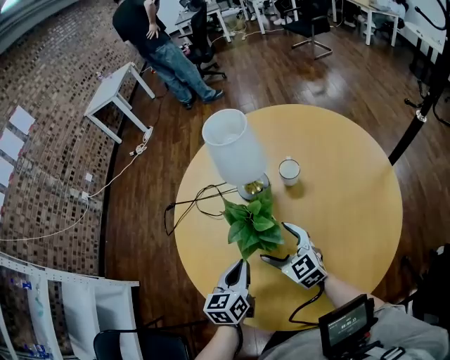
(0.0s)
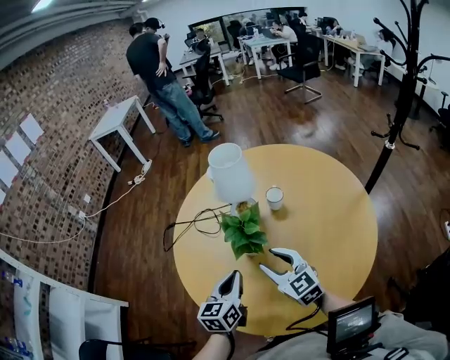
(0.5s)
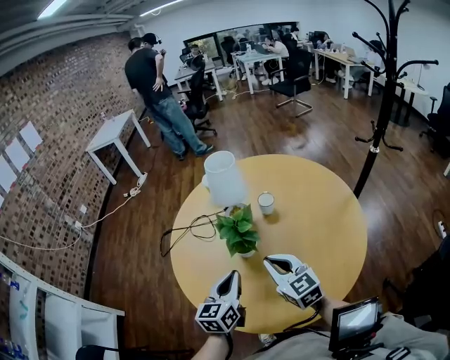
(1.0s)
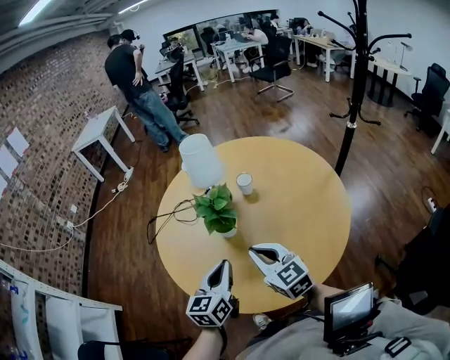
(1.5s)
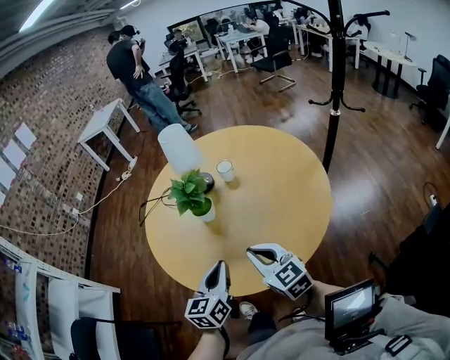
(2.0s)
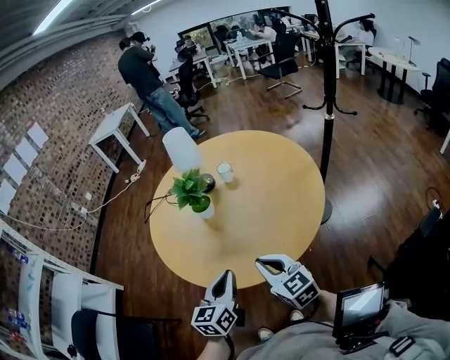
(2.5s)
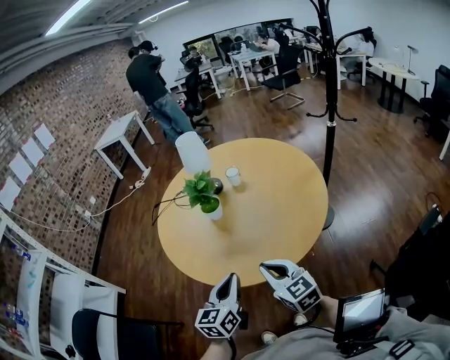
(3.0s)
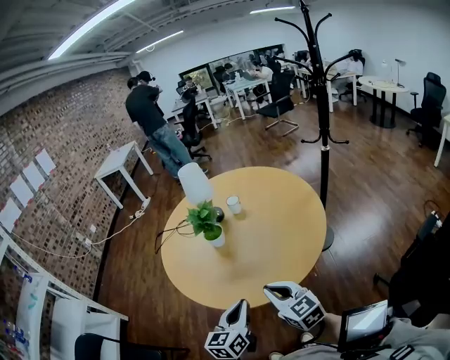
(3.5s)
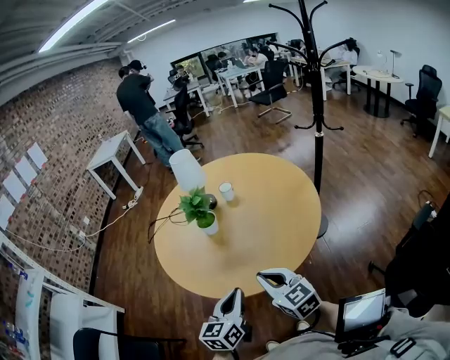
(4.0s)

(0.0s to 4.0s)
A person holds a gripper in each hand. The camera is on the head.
0.0s - 2.0s: The grippers both shift backward and upward by some 25 cm. The right gripper closes.
2.0s - 4.0s: Both grippers travel together backward, about 15 cm.

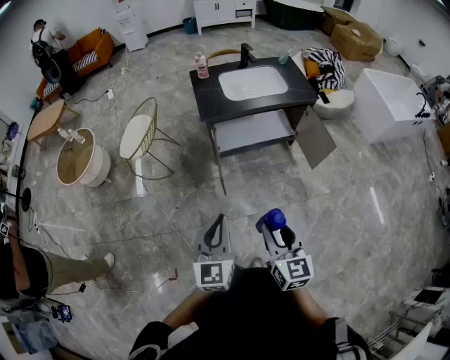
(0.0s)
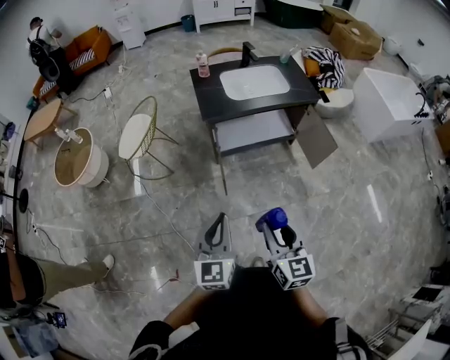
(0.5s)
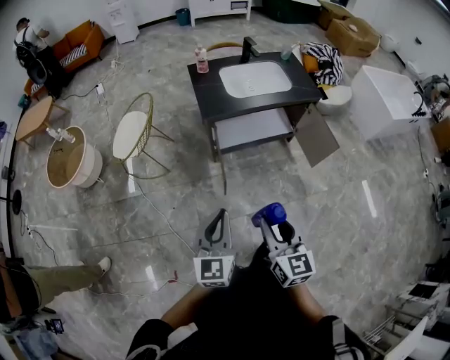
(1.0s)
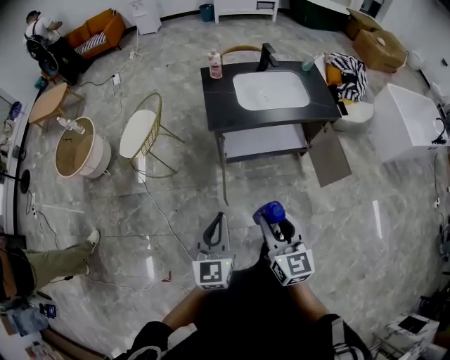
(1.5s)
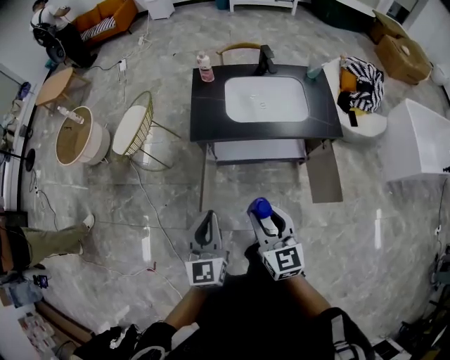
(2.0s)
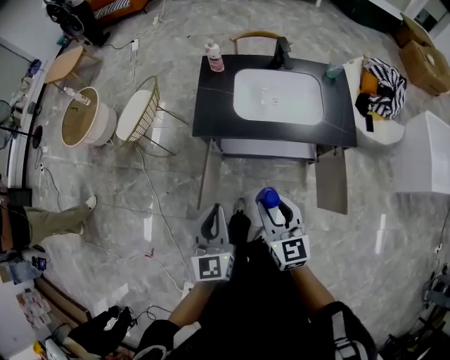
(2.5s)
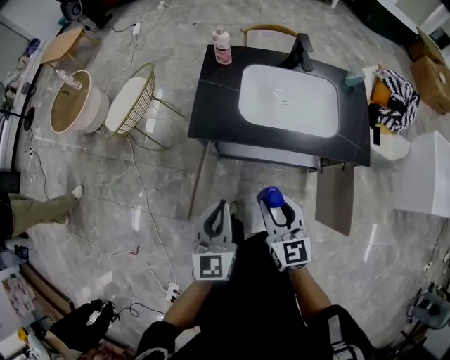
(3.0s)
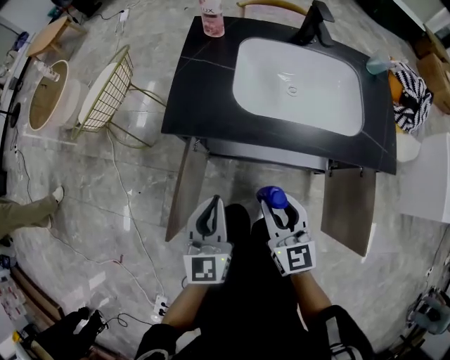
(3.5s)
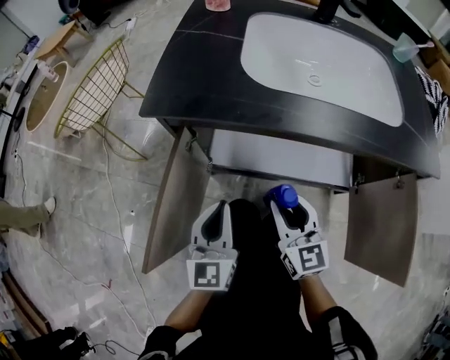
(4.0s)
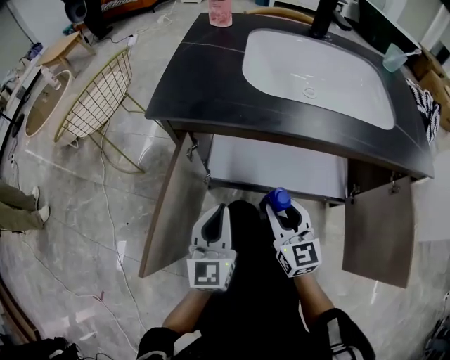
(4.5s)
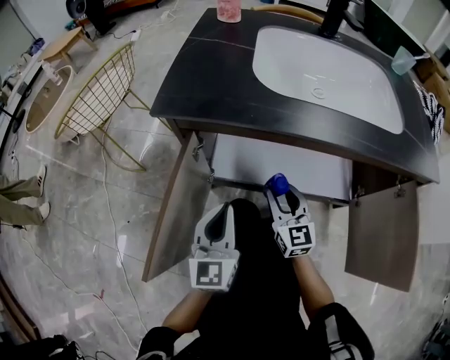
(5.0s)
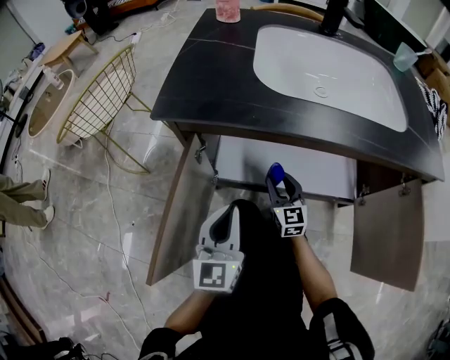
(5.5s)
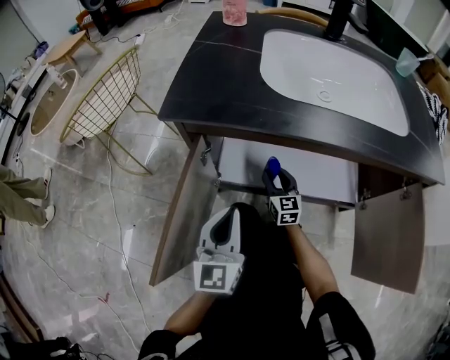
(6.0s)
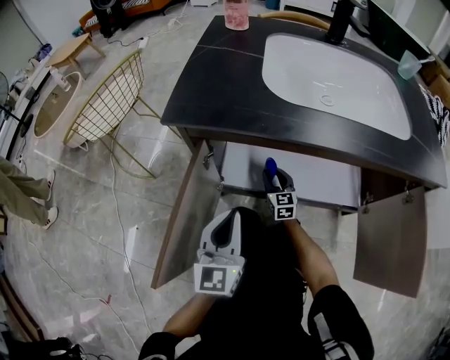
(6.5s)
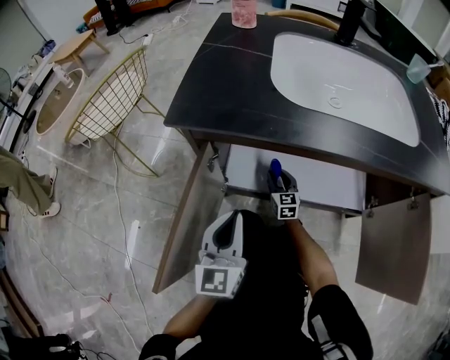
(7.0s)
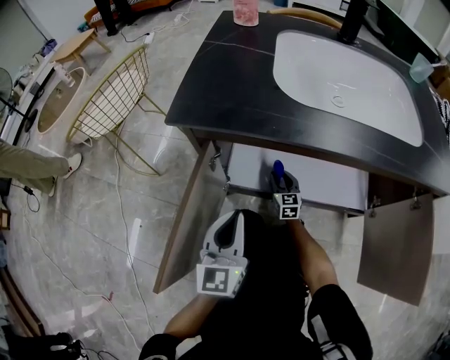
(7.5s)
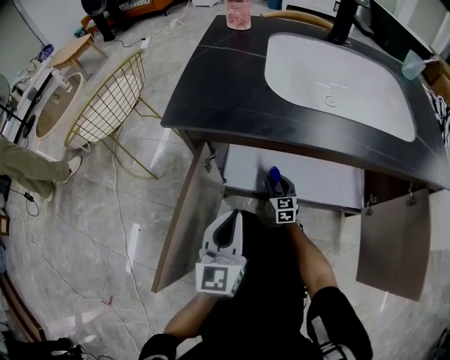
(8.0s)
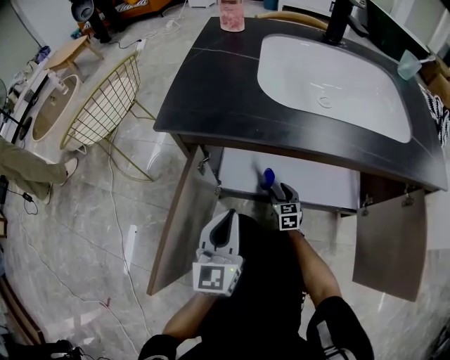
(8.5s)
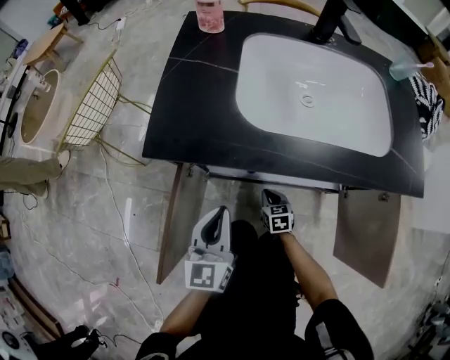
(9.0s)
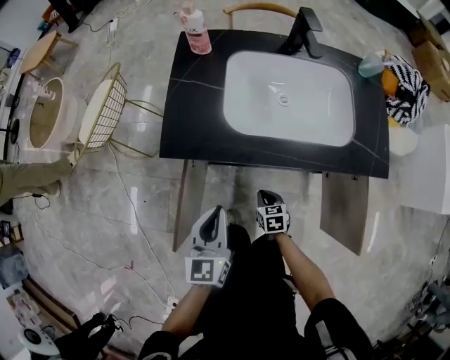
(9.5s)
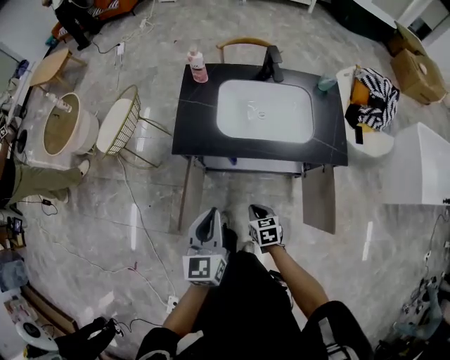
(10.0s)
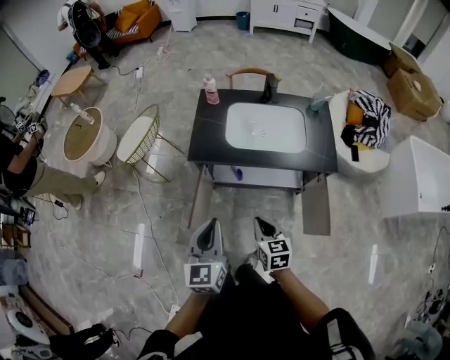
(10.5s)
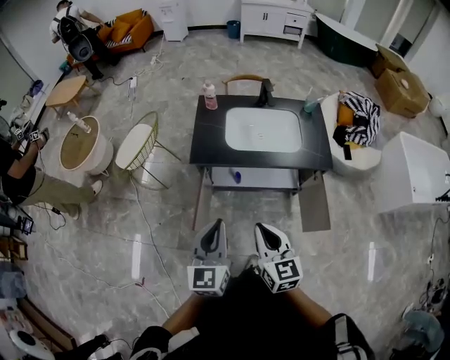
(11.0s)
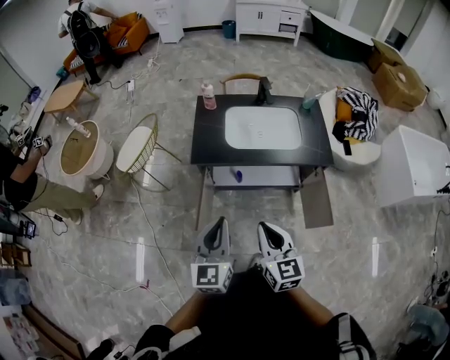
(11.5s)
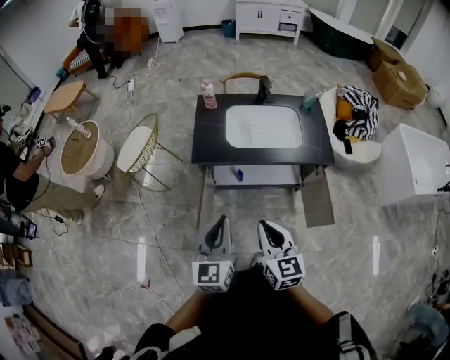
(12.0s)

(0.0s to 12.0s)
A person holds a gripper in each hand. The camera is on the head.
0.0s - 2.0s: The left gripper moves forward and to the right, approximately 30 cm, while the right gripper shifts roughly 35 cm forward, and swivels some 20 degrees.
2.0s - 4.0s: Both grippers travel together downward and forward, about 50 cm.
4.0s - 6.0s: The right gripper shifts approximately 25 cm downward and forward.
6.0s - 8.0s: The right gripper moves downward, about 10 cm.
8.0s - 10.0s: The right gripper is displaced upward and backward by about 50 cm, changes its angle by approximately 30 degrees, and closes, while the left gripper heads upward, covering roughly 40 cm.
10.0s - 12.0s: The left gripper shifts about 20 cm upward and backward. The right gripper heads upward and backward, covering some 35 cm, and points its fingers roughly 30 degrees further upward.

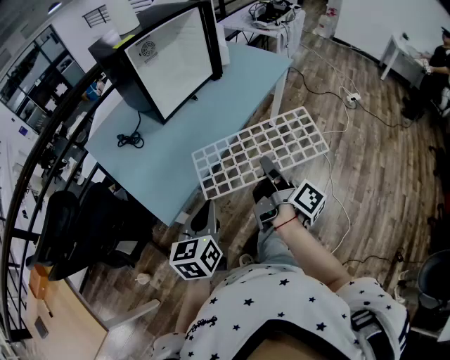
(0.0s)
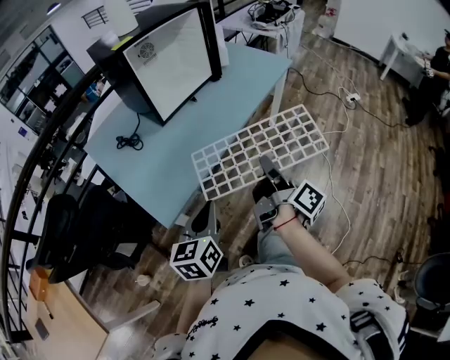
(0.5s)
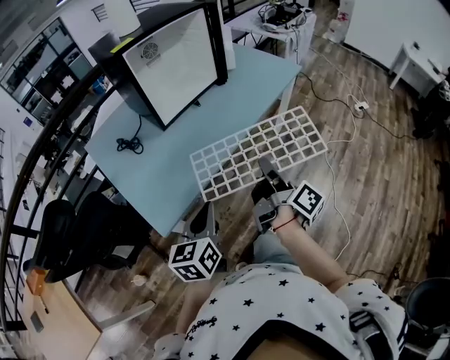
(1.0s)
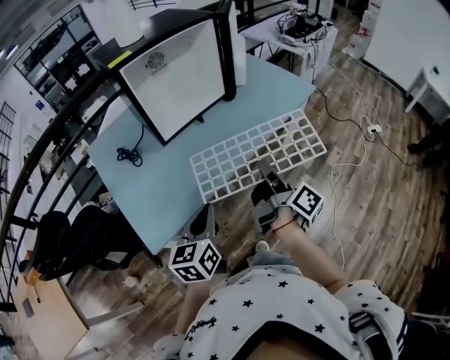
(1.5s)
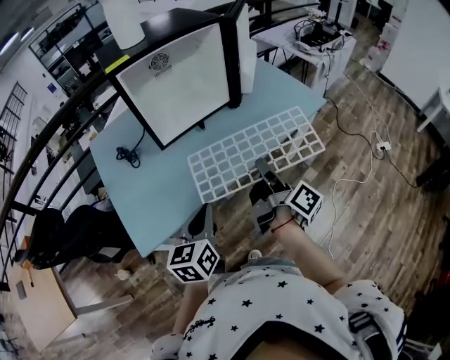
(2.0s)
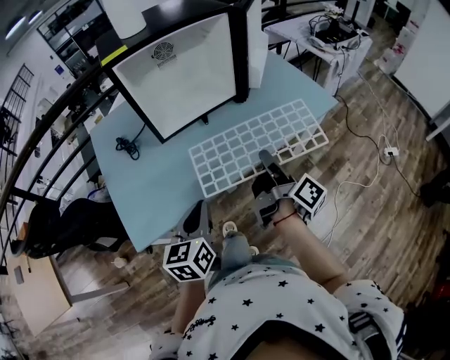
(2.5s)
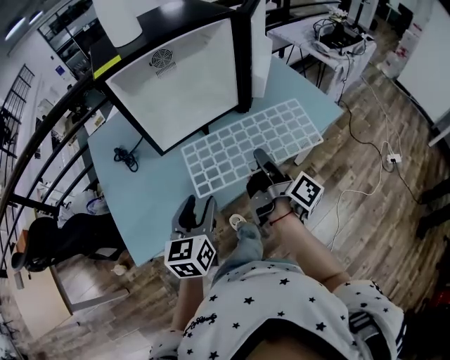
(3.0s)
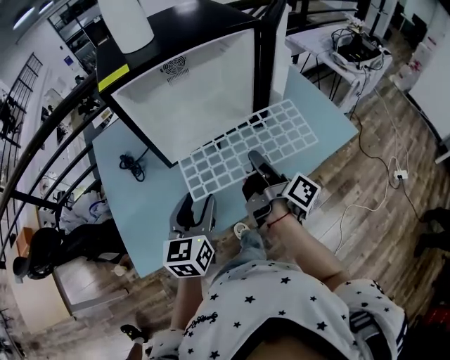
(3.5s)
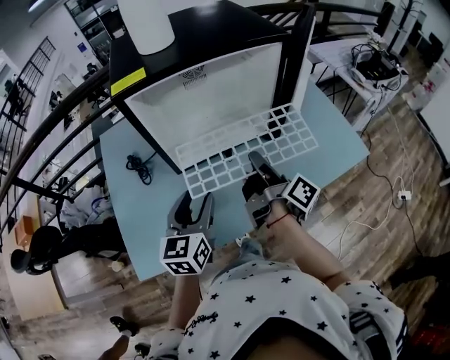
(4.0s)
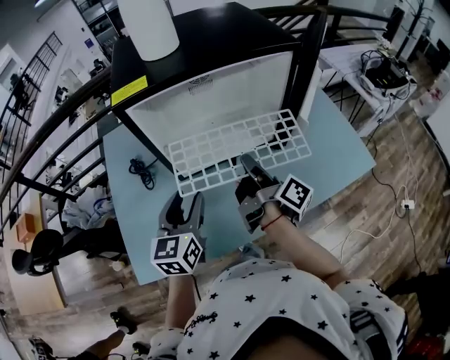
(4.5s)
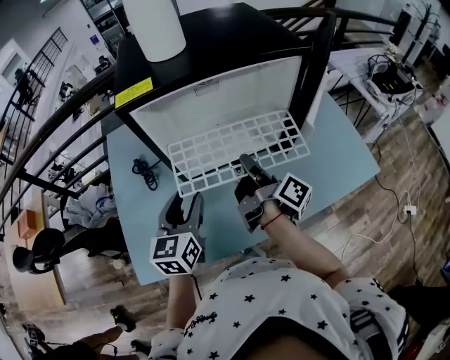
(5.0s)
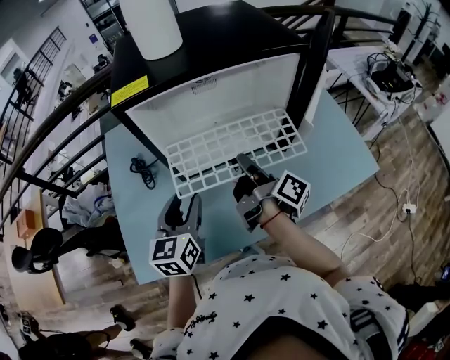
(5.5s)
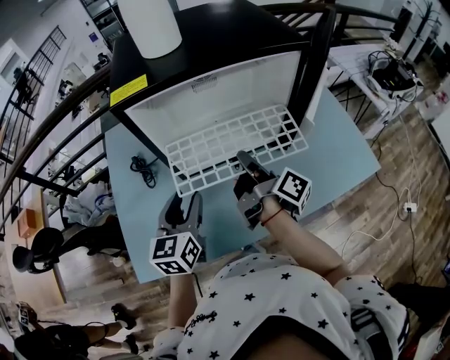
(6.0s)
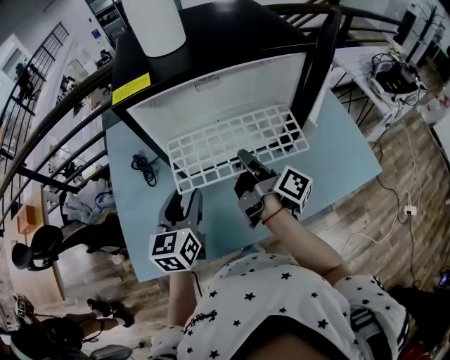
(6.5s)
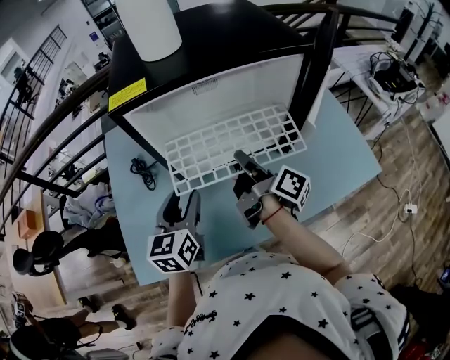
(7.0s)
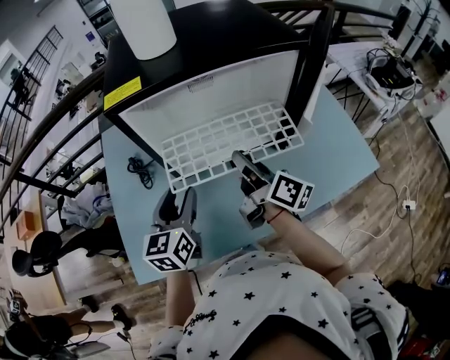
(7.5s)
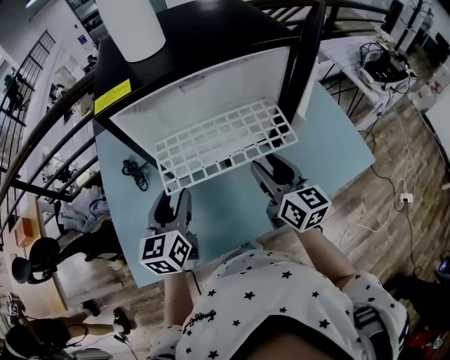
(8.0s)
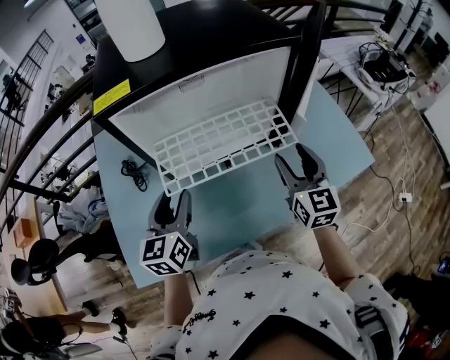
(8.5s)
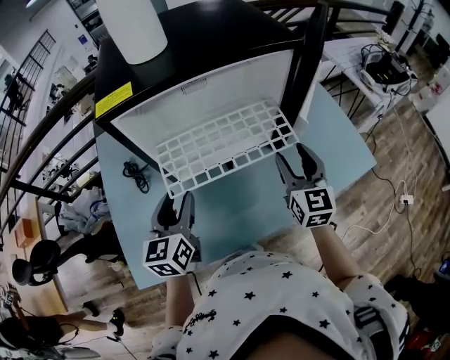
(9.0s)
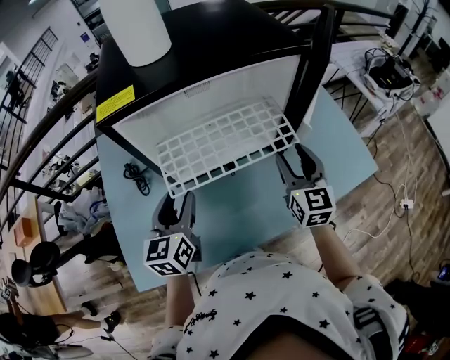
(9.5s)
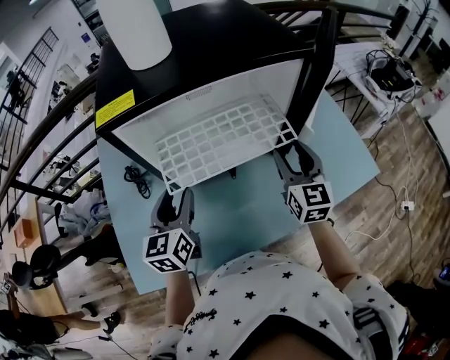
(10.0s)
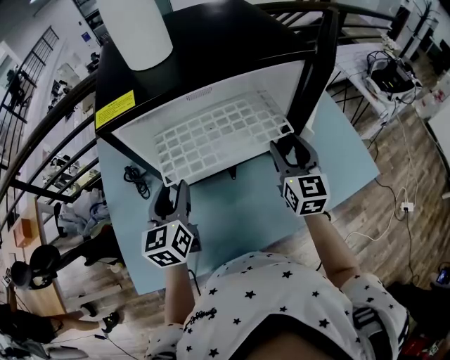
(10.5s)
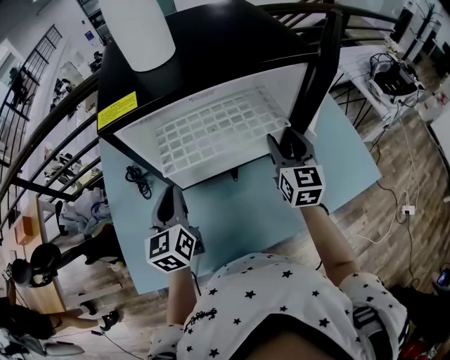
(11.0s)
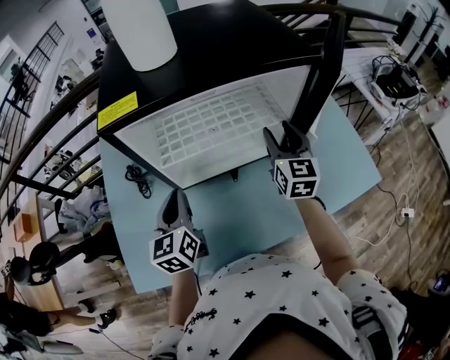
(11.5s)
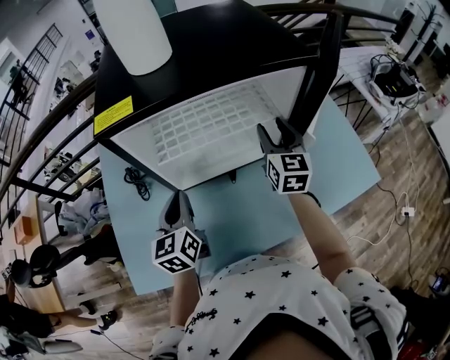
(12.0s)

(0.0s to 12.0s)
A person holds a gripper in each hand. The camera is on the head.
0.0s - 2.0s: The left gripper travels forward and to the right by some 20 cm. Meanwhile the right gripper travels forward by some 25 cm.
2.0s - 4.0s: The two grippers go roughly 20 cm forward. The left gripper opens up.
4.0s - 6.0s: The left gripper shifts by some 5 cm. The right gripper travels forward by roughly 5 cm.
6.0s - 8.0s: The right gripper goes approximately 5 cm to the right, rolls counterclockwise, seen from behind, by approximately 60 degrees, and opens its fingers.
8.0s - 10.0s: The right gripper moves forward and to the right, roughly 10 cm, and swivels approximately 30 degrees.
10.0s - 12.0s: The right gripper is displaced forward by some 10 cm. Meanwhile the left gripper closes its fingers.
